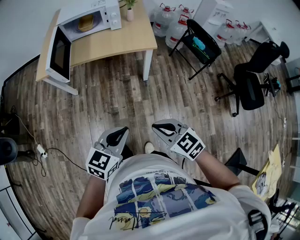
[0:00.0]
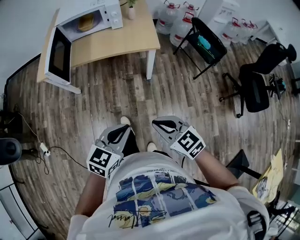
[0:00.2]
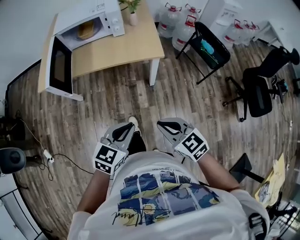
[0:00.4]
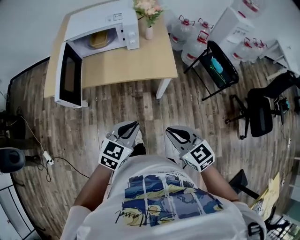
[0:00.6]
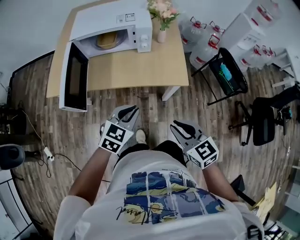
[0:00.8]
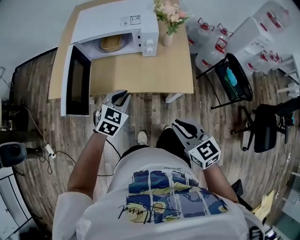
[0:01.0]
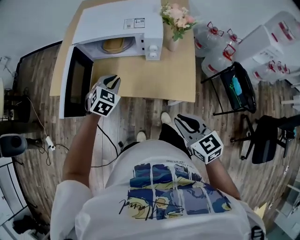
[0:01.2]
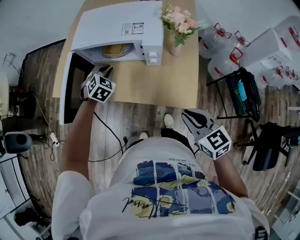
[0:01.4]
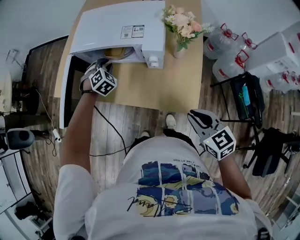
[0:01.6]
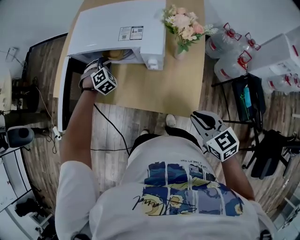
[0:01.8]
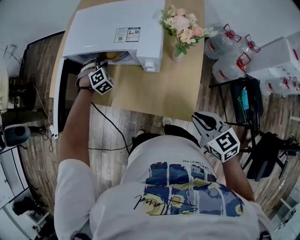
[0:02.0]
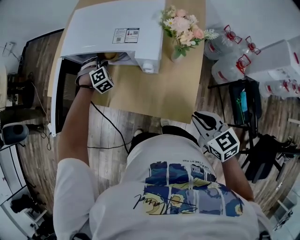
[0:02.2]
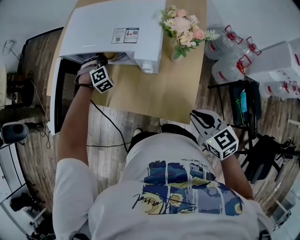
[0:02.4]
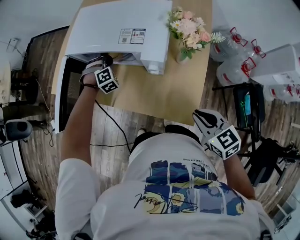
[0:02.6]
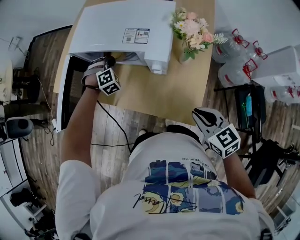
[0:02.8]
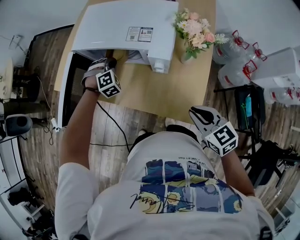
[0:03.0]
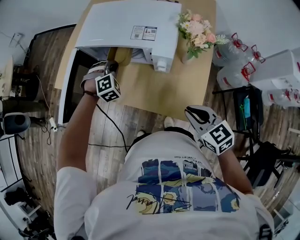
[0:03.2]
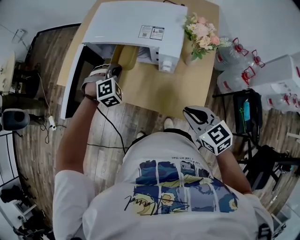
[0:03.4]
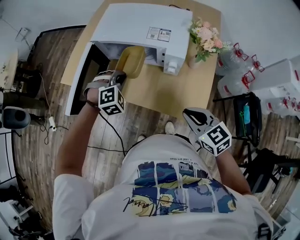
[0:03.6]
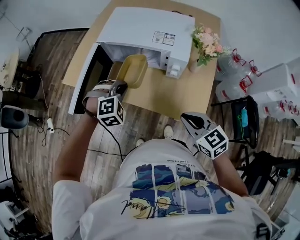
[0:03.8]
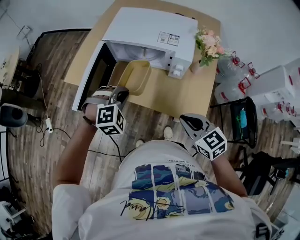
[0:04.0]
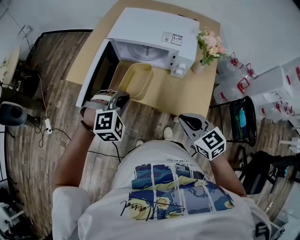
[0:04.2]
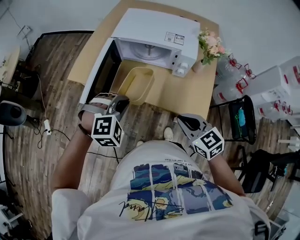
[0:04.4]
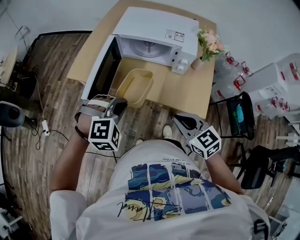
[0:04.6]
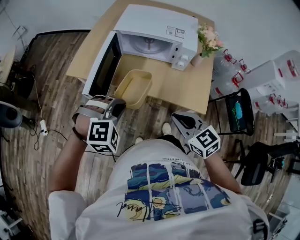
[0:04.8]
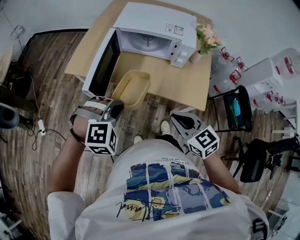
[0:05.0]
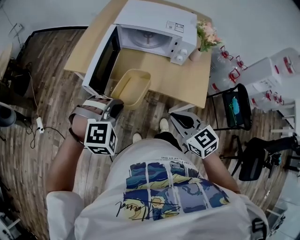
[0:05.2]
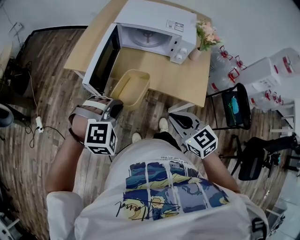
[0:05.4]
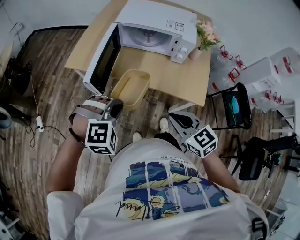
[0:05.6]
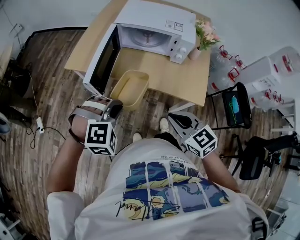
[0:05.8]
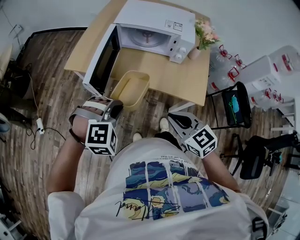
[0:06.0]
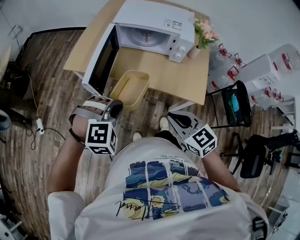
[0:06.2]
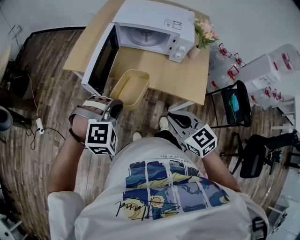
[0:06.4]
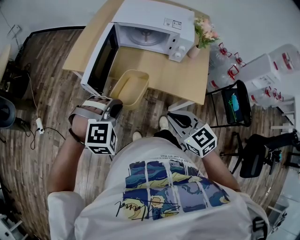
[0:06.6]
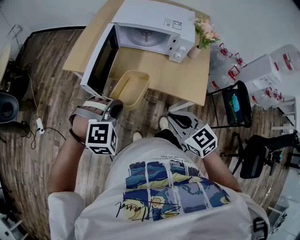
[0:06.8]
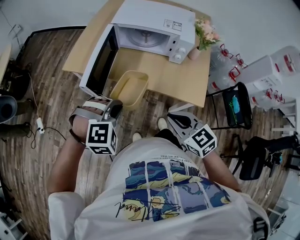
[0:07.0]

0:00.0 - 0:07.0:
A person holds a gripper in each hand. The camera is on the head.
0:00.0 - 0:01.4: The two grippers travel together, approximately 60 cm. The left gripper changes its angle by about 50 degrees.
0:01.4 - 0:02.8: The left gripper shifts approximately 10 cm forward and downward, and rotates about 30 degrees. Meanwhile the right gripper shifts some 10 cm to the right and forward.
0:02.8 - 0:04.2: The left gripper is displaced backward, upward and to the left by approximately 30 cm; the right gripper heads to the left, covering some 20 cm.
0:04.2 - 0:05.6: The right gripper moves to the left and backward, some 15 cm, while the left gripper moves backward and to the left, approximately 15 cm.
0:05.6 - 0:07.0: The grippers make only small movements.

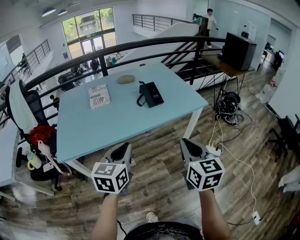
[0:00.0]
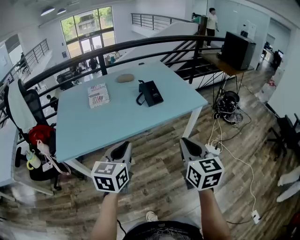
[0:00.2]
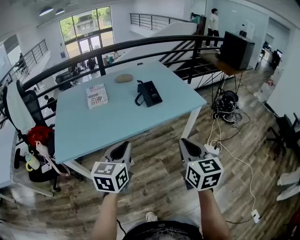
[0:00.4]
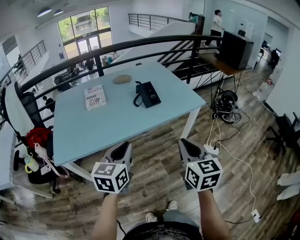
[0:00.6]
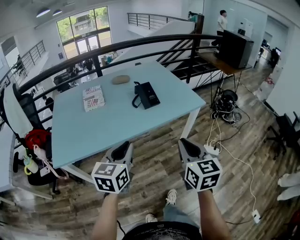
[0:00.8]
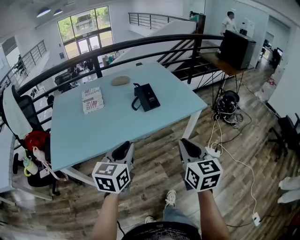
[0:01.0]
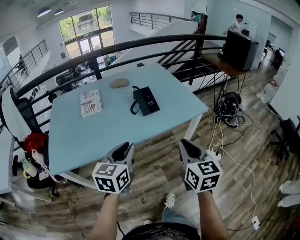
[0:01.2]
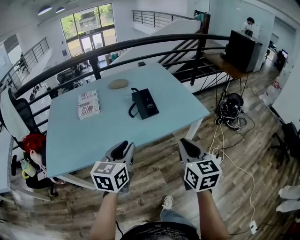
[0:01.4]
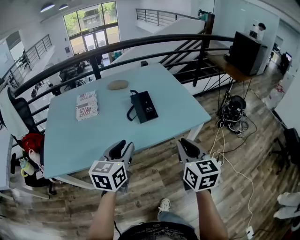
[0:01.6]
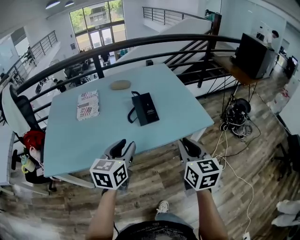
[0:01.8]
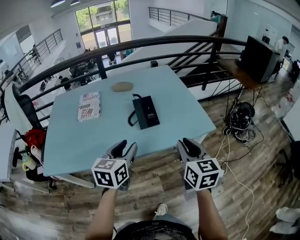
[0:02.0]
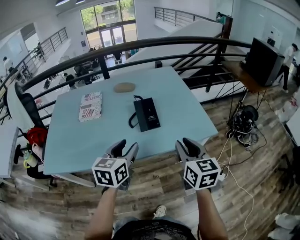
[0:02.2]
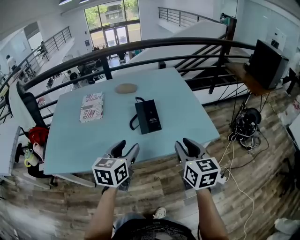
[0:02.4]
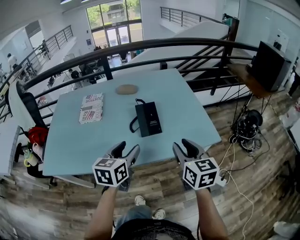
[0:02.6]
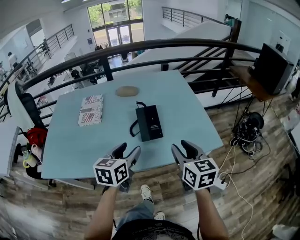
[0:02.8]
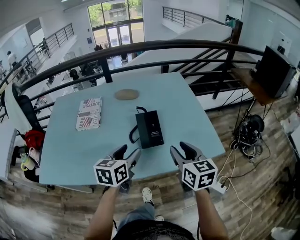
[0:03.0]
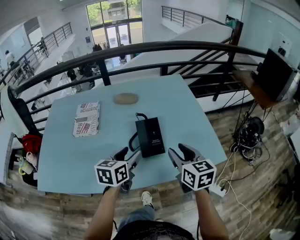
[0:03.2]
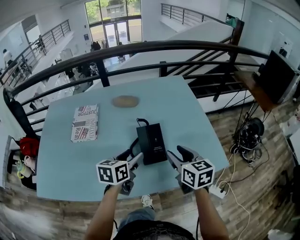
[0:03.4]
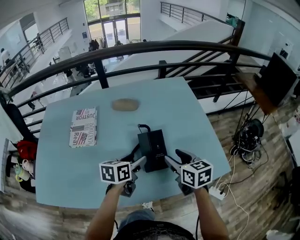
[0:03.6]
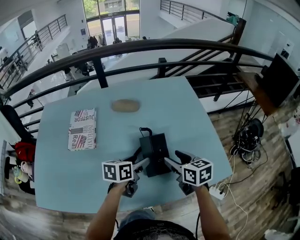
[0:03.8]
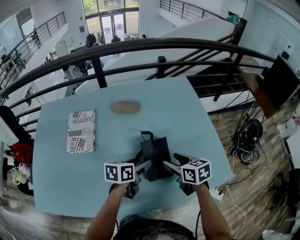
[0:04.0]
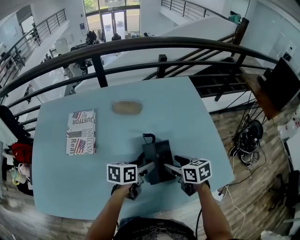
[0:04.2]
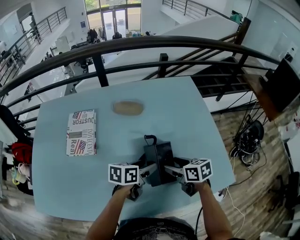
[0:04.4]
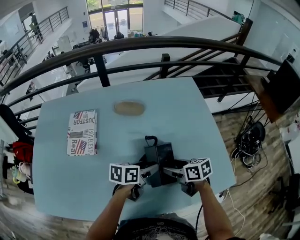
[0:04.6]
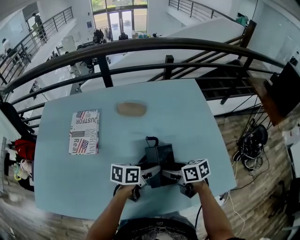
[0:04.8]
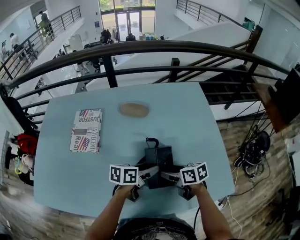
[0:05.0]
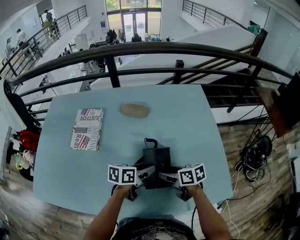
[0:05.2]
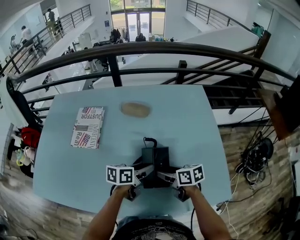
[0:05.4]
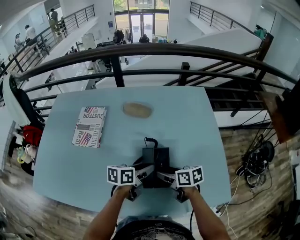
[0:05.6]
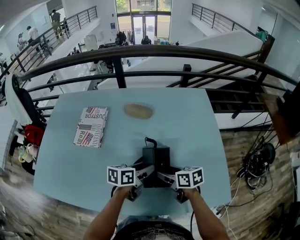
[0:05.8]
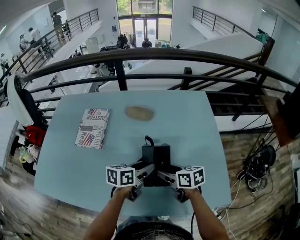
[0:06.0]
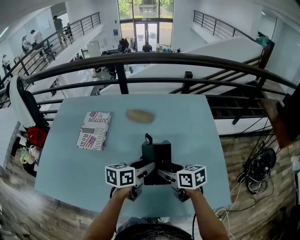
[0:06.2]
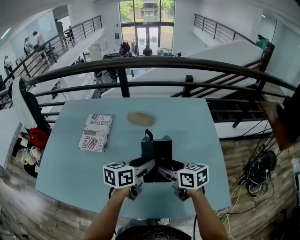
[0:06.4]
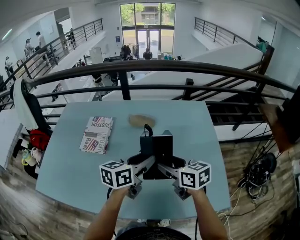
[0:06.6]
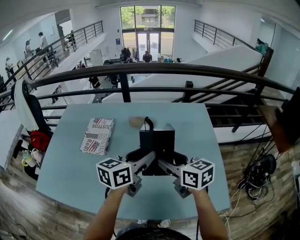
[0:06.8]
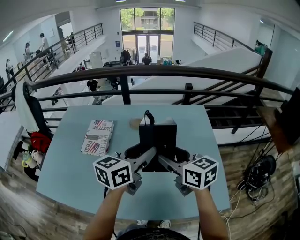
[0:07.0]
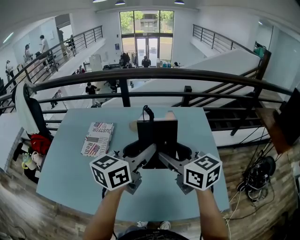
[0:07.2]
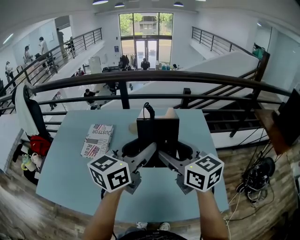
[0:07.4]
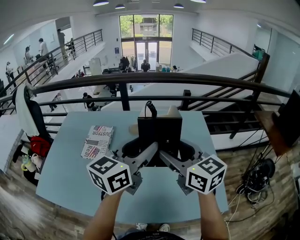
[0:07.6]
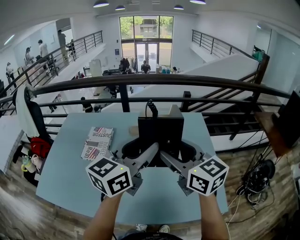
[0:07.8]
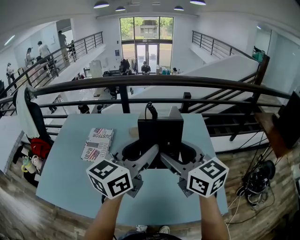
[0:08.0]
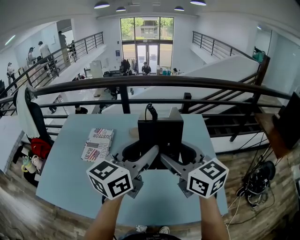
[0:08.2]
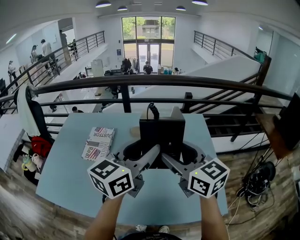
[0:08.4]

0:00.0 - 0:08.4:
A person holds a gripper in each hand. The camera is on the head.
0:00.0 - 0:01.4: The two grippers go approximately 15 cm forward.
0:01.4 - 0:02.8: The two grippers go about 20 cm forward. The left gripper opens its fingers. The right gripper opens up.
0:02.8 - 0:04.2: Both grippers move forward and downward, approximately 25 cm. The left gripper turns by about 30 degrees, while the right gripper turns by approximately 30 degrees, and opens its fingers.
0:04.2 - 0:05.6: The grippers make only small movements.
0:05.6 - 0:07.0: Both grippers move upward, about 25 cm. The right gripper rotates roughly 40 degrees; the left gripper turns by approximately 40 degrees.
0:07.0 - 0:08.4: The grippers both shift upward by about 10 cm.

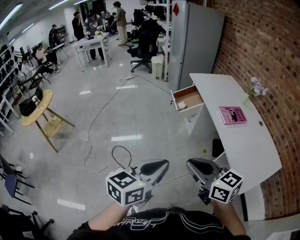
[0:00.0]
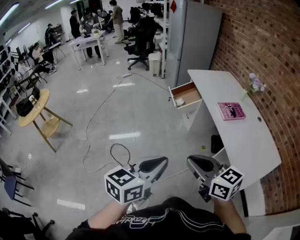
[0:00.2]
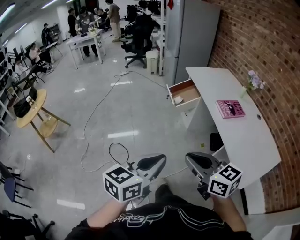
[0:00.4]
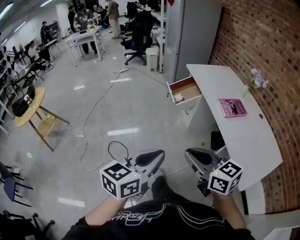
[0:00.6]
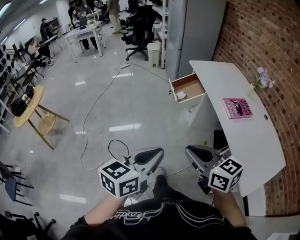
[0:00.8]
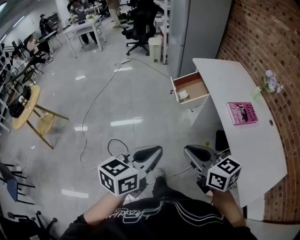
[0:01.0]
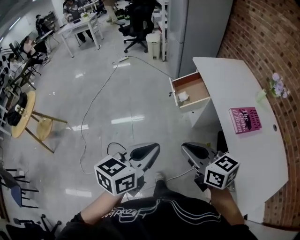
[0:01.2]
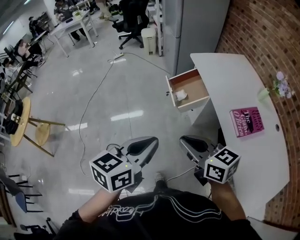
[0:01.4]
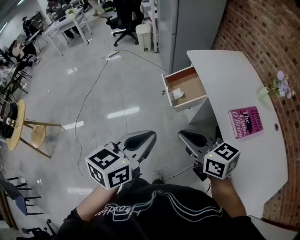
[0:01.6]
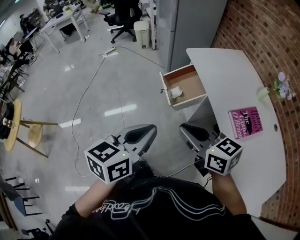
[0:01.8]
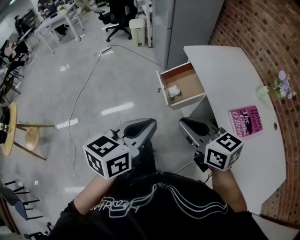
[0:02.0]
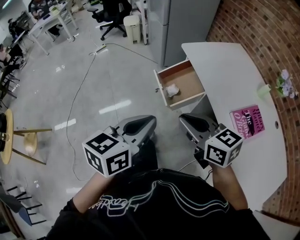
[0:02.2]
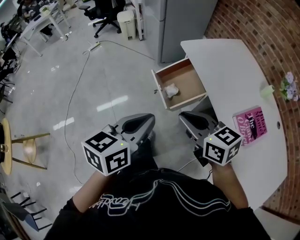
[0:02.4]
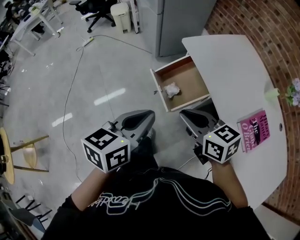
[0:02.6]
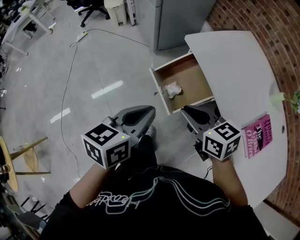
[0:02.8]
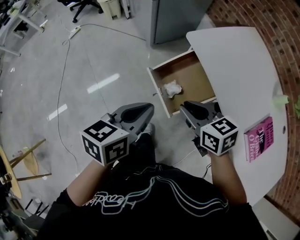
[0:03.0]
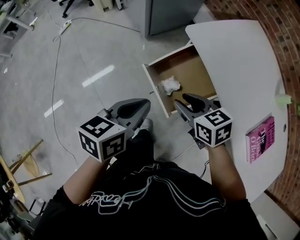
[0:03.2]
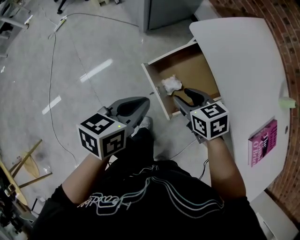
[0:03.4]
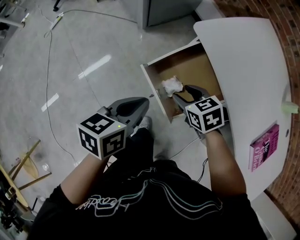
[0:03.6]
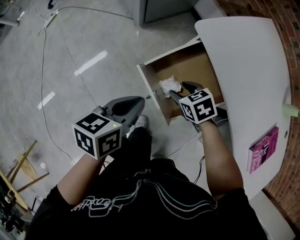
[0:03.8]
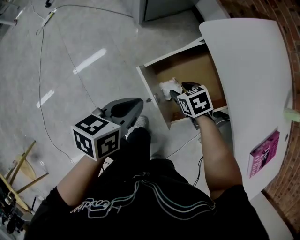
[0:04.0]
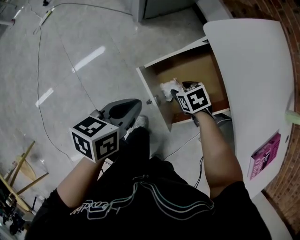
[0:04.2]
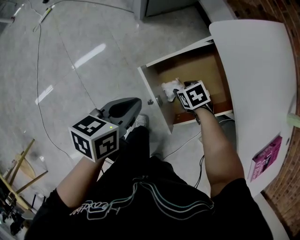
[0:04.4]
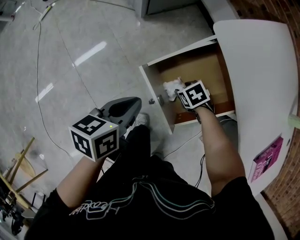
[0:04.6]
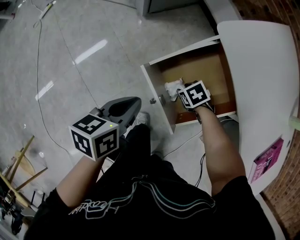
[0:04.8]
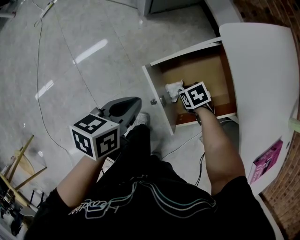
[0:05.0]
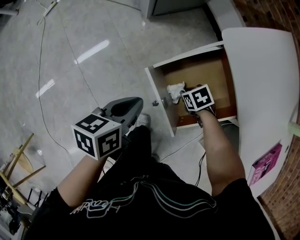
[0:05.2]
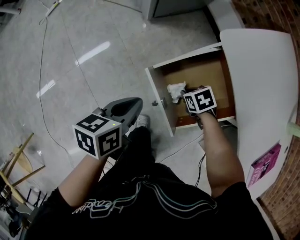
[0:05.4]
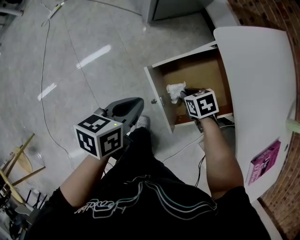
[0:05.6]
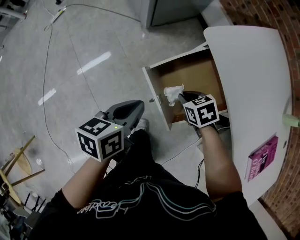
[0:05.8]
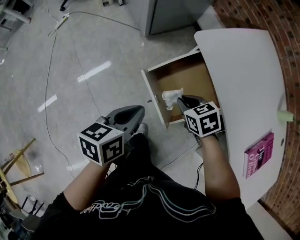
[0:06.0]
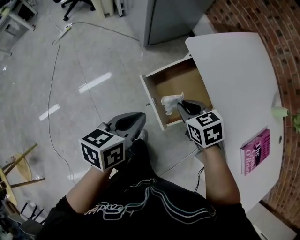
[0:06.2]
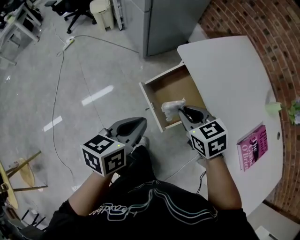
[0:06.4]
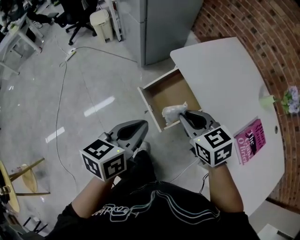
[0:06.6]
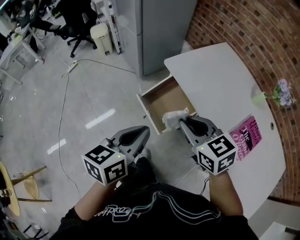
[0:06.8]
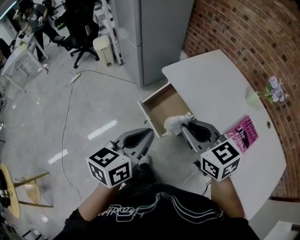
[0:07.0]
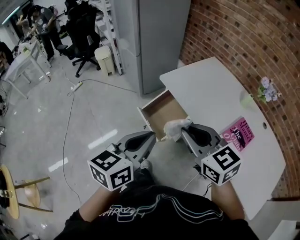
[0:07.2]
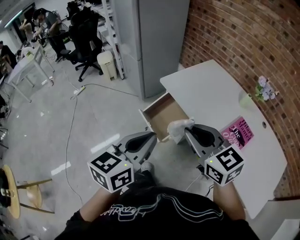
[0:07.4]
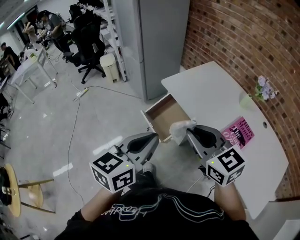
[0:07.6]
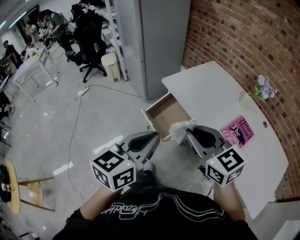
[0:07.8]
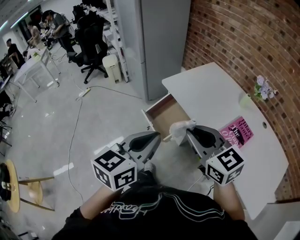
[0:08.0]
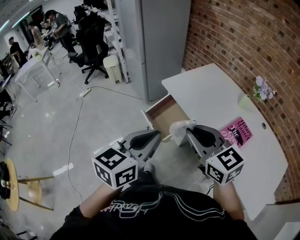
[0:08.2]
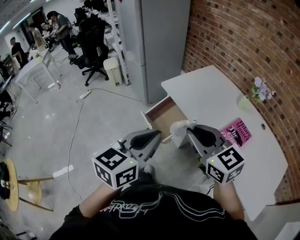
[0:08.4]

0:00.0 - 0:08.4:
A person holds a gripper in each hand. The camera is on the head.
0:00.0 - 0:01.4: Both grippers move forward, about 40 cm.
0:01.4 - 0:02.8: The two grippers go about 40 cm forward. The right gripper rotates some 20 degrees.
0:02.8 - 0:04.2: Both grippers travel together downward and forward, roughly 35 cm. The right gripper angles its fingers downward, by approximately 40 degrees, and opens up.
0:04.2 - 0:05.6: The right gripper closes.
0:05.6 - 0:07.0: Both grippers move upward and backward, about 50 cm. The right gripper tilts its fingers about 50 degrees upward. Meanwhile the left gripper turns by some 30 degrees.
0:07.0 - 0:08.4: Both grippers move backward, upward and to the right, about 15 cm.
